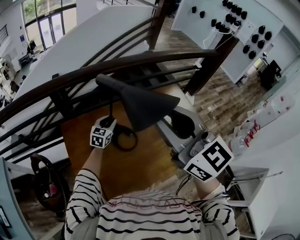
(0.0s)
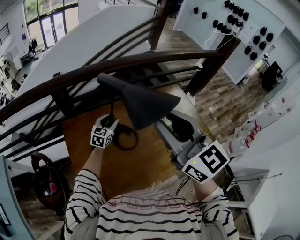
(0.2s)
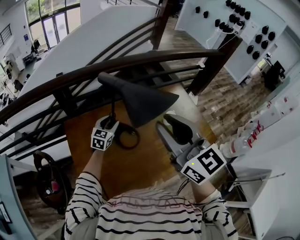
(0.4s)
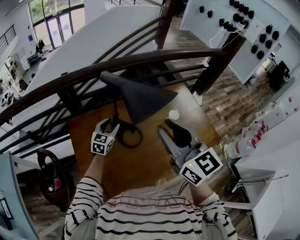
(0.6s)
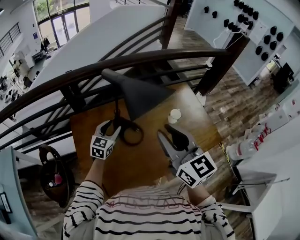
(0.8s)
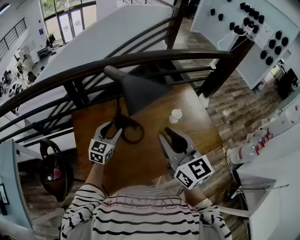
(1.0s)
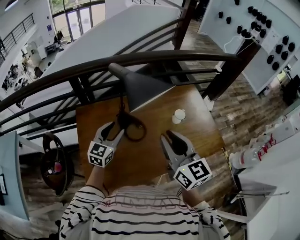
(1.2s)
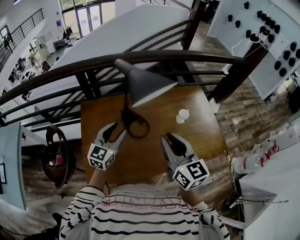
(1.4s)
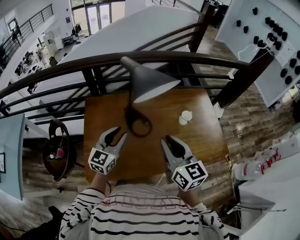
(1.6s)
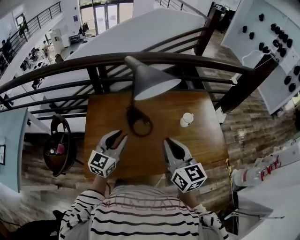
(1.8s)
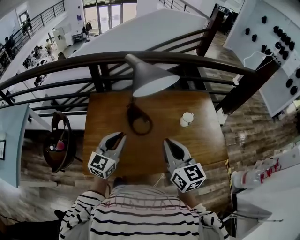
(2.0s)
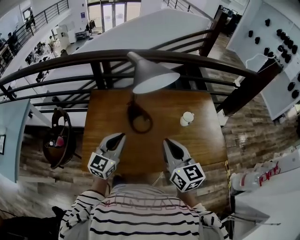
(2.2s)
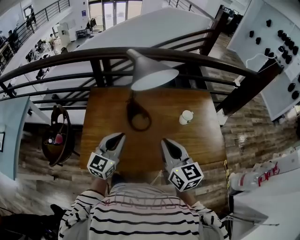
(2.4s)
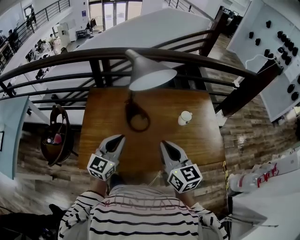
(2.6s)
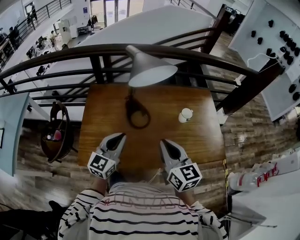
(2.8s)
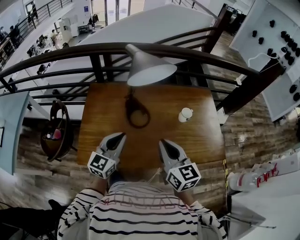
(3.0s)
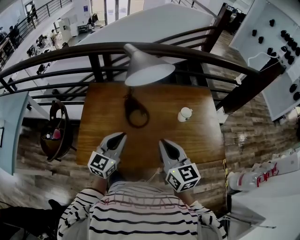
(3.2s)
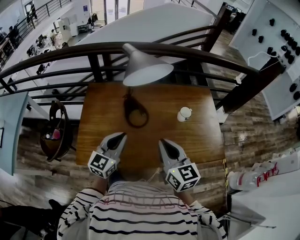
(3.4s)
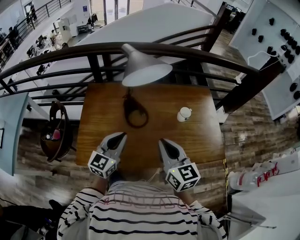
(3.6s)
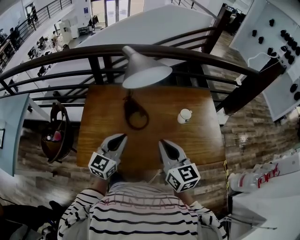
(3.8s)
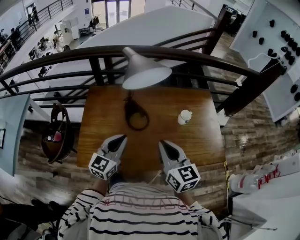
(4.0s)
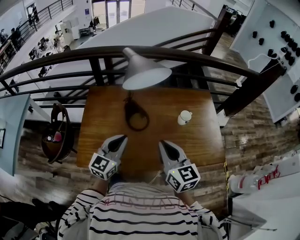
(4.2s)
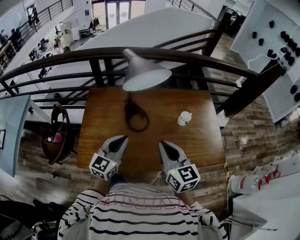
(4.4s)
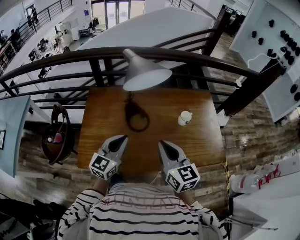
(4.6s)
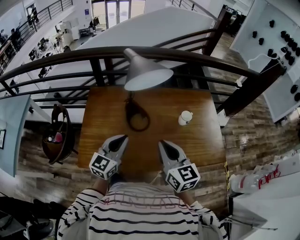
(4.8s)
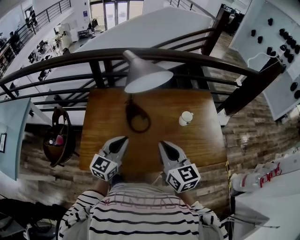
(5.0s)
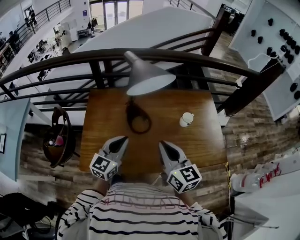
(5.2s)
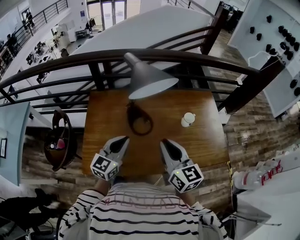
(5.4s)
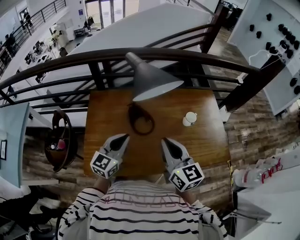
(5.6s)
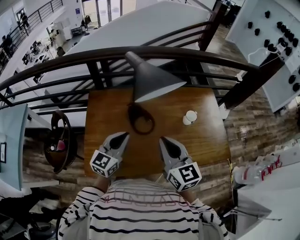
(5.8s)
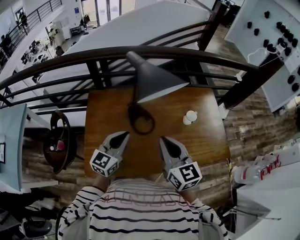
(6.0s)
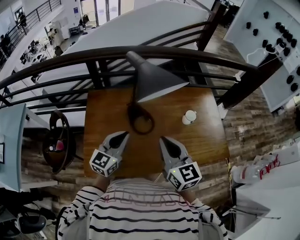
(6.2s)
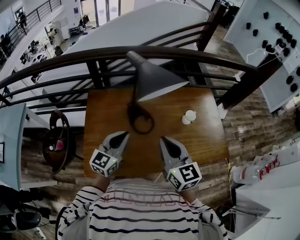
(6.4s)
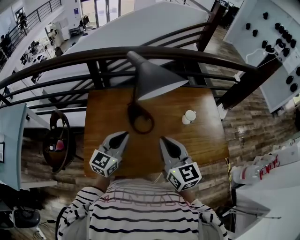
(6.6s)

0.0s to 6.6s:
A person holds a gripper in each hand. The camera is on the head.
0.0s to 1.6s: The left gripper moves backward and upward, approximately 25 cm, while the right gripper heads downward, backward and to the right, covering roughly 20 cm, and changes its angle by about 20 degrees.
1.6s to 3.2s: The left gripper shifts about 10 cm backward and to the right, and closes up. The right gripper travels downward by roughly 5 cm.
3.2s to 5.0s: The two grippers keep their place.
5.0s to 6.6s: Both grippers move to the left, some 5 cm.

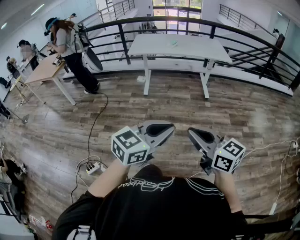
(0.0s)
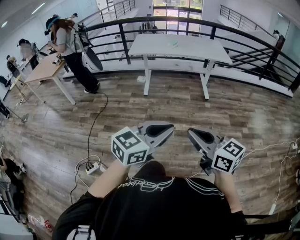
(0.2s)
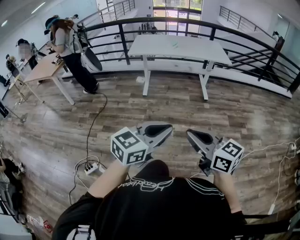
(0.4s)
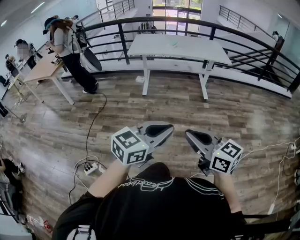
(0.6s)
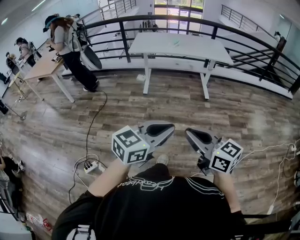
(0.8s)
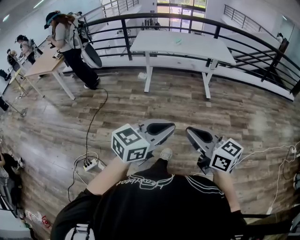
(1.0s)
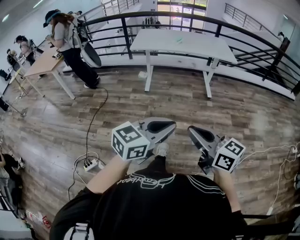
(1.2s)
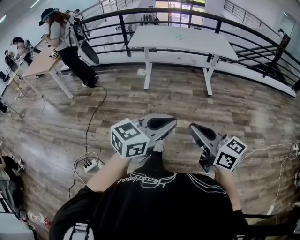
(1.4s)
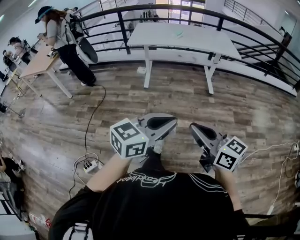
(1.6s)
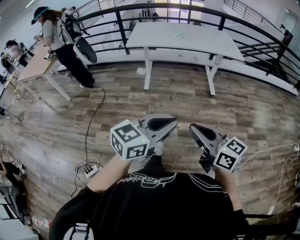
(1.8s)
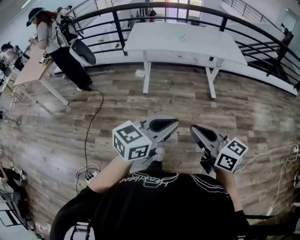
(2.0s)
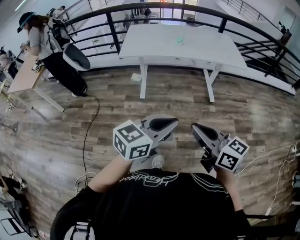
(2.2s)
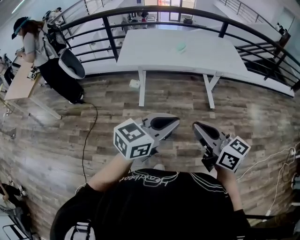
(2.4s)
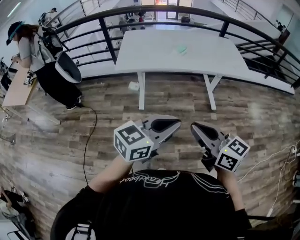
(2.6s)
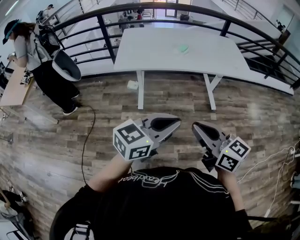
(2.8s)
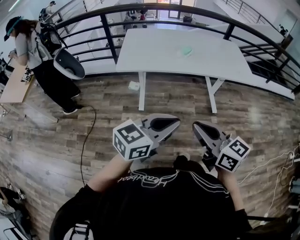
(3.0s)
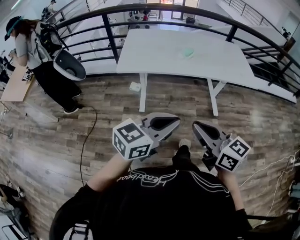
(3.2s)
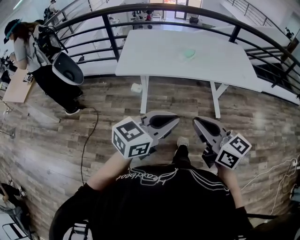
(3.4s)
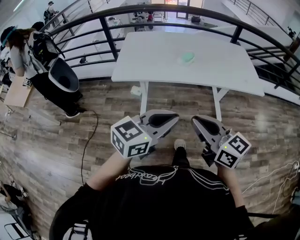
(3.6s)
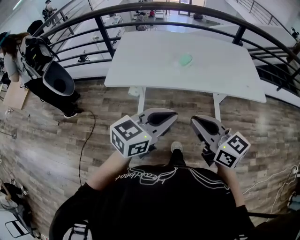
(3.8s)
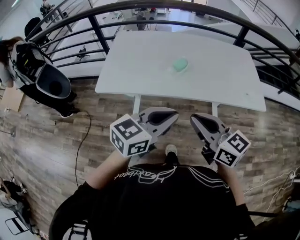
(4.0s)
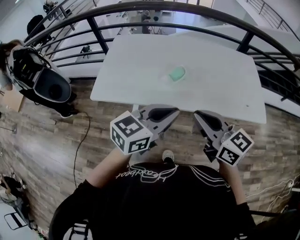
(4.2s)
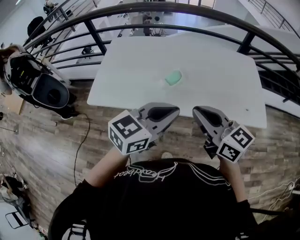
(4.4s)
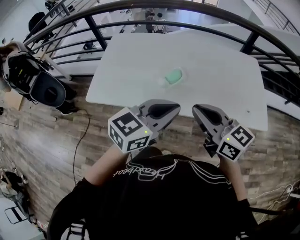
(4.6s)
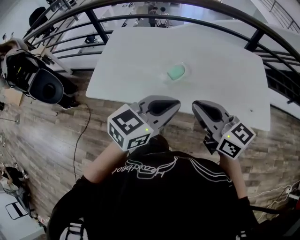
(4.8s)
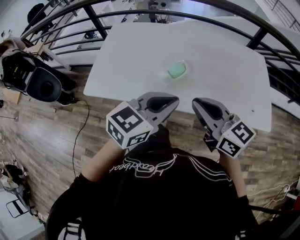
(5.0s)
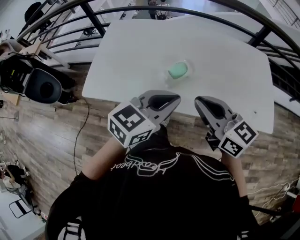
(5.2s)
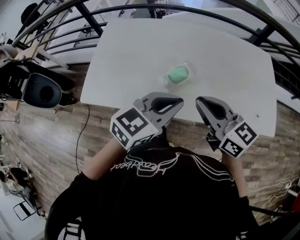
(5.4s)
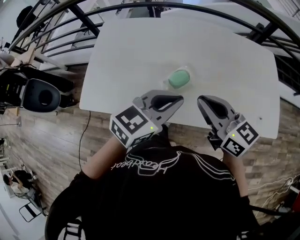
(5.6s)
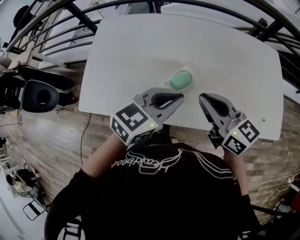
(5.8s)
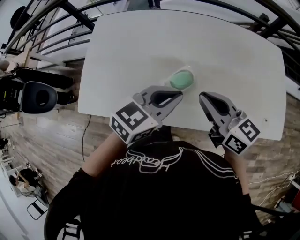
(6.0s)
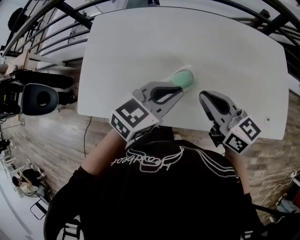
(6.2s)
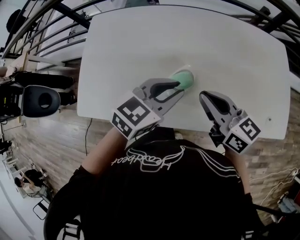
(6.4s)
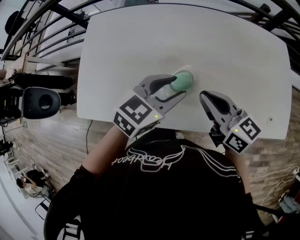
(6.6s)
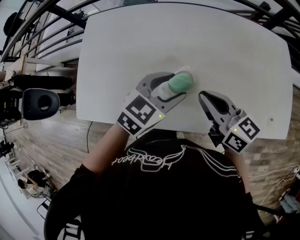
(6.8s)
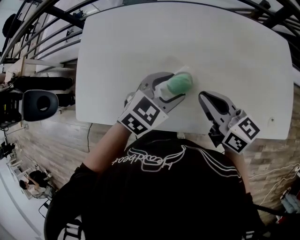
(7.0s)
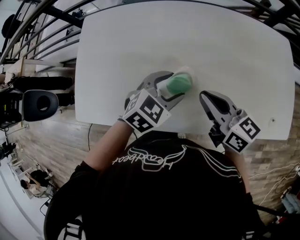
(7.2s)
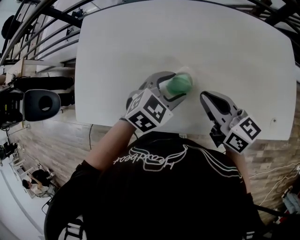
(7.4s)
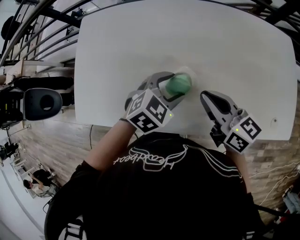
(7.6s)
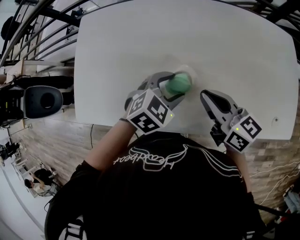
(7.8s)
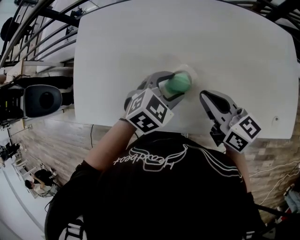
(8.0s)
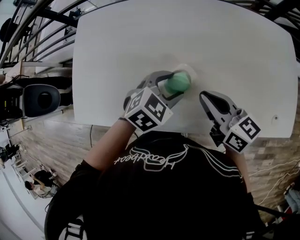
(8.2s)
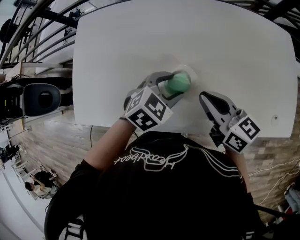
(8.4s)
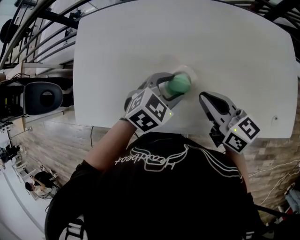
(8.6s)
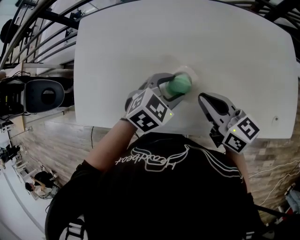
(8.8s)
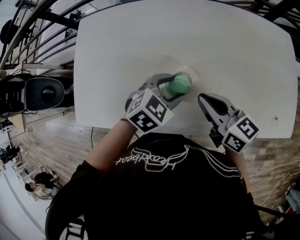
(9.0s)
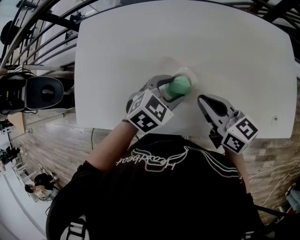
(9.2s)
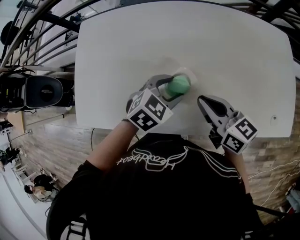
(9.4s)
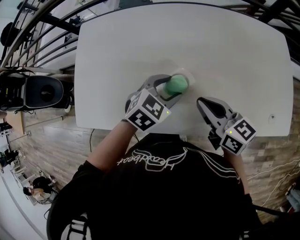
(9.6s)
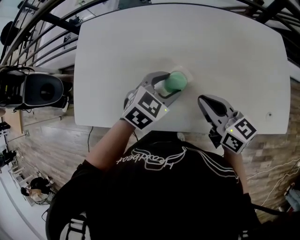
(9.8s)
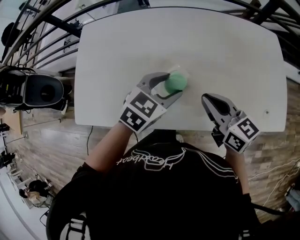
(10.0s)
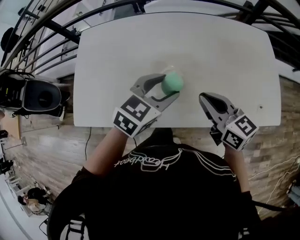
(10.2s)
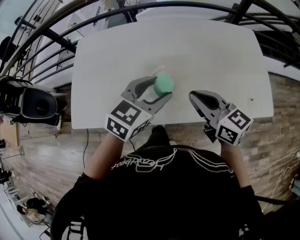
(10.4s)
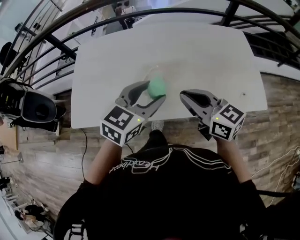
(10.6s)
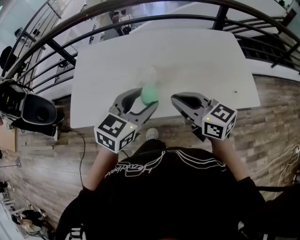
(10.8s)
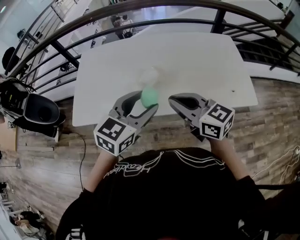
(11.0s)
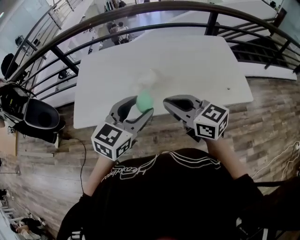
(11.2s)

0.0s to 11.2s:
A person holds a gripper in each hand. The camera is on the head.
0.0s to 1.6s: The left gripper travels forward by some 10 cm. Meanwhile the right gripper travels forward and downward by about 15 cm.
1.6s to 3.2s: The two grippers travel together, forward, approximately 50 cm.
3.2s to 4.8s: The two grippers travel together, forward, approximately 50 cm.
4.8s to 6.4s: The two grippers go some 25 cm forward and downward.
6.4s to 8.0s: The left gripper travels downward by about 10 cm, turns by roughly 30 degrees, and opens. The right gripper moves downward, some 5 cm.
8.0s to 9.6s: The grippers move only a little.
9.6s to 11.2s: Both grippers move backward and upward, about 35 cm. The left gripper changes its angle by roughly 30 degrees; the right gripper turns by some 20 degrees.

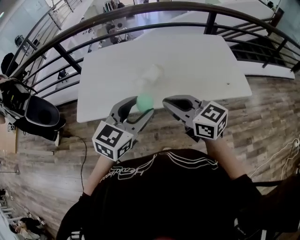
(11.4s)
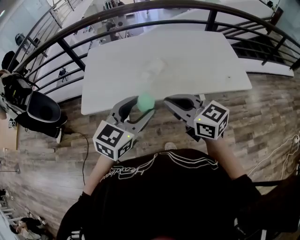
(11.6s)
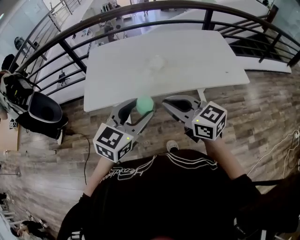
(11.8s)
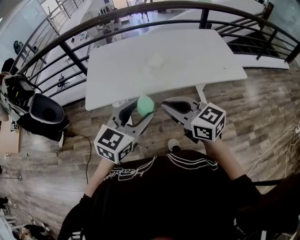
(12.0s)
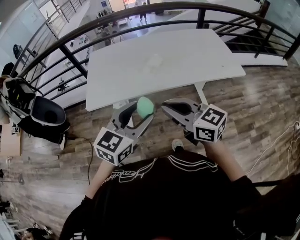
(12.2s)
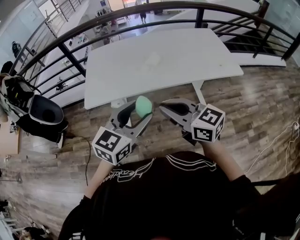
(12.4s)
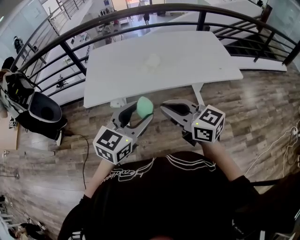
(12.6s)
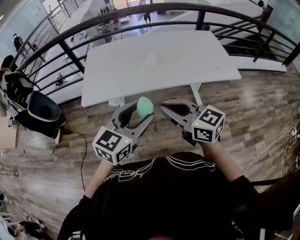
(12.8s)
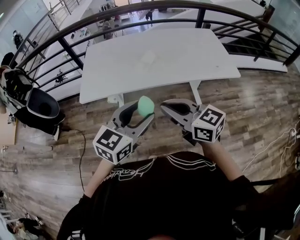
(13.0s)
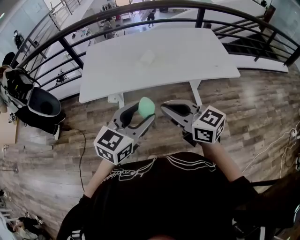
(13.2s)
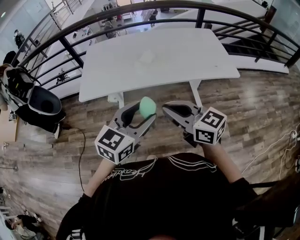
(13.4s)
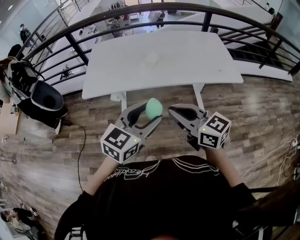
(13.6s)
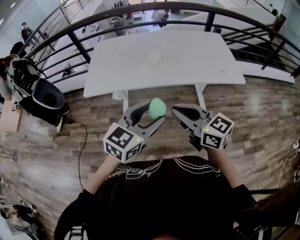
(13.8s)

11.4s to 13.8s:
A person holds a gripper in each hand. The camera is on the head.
11.4s to 12.6s: Both grippers travel together backward, about 15 cm.
12.6s to 13.8s: The two grippers go approximately 10 cm to the right.

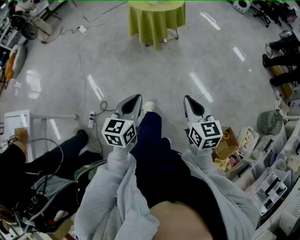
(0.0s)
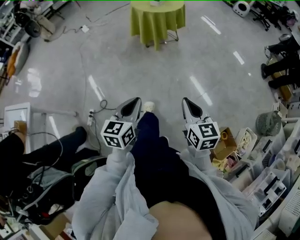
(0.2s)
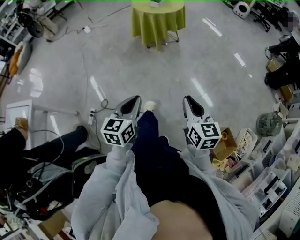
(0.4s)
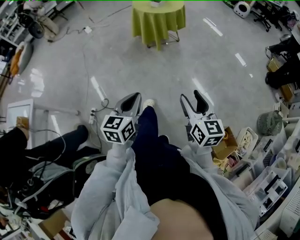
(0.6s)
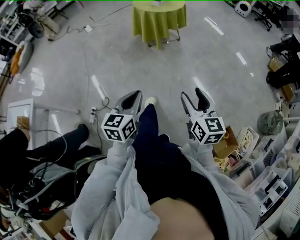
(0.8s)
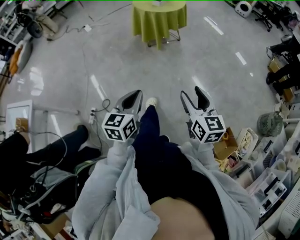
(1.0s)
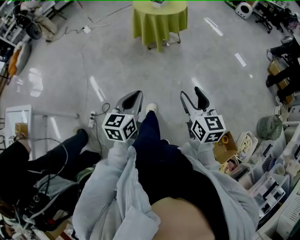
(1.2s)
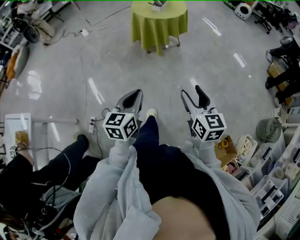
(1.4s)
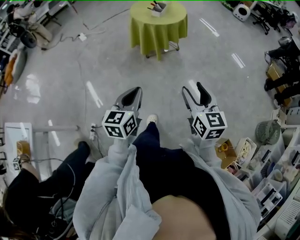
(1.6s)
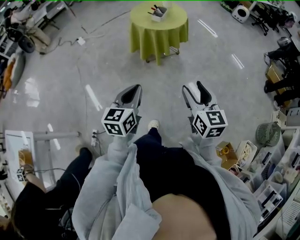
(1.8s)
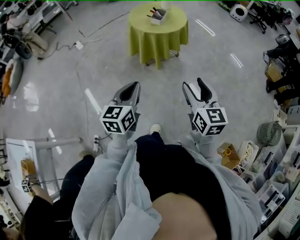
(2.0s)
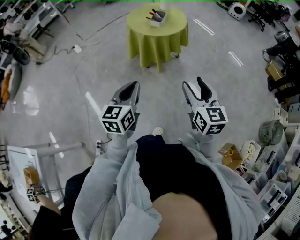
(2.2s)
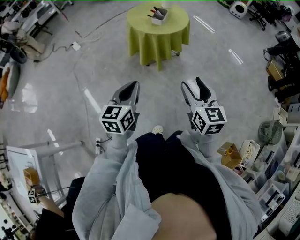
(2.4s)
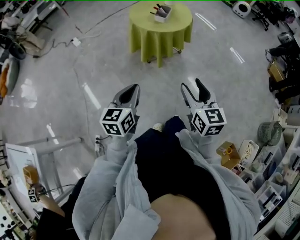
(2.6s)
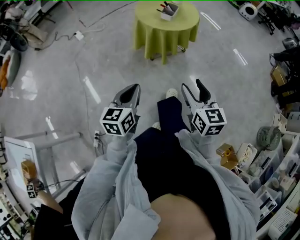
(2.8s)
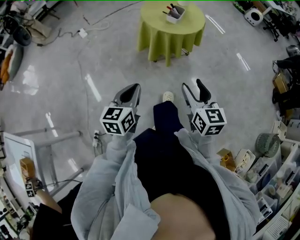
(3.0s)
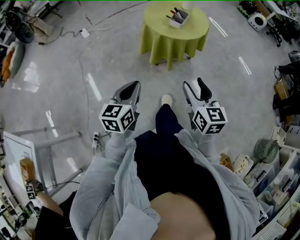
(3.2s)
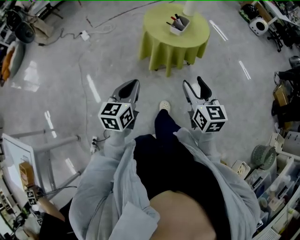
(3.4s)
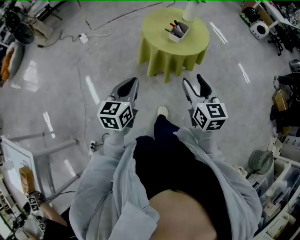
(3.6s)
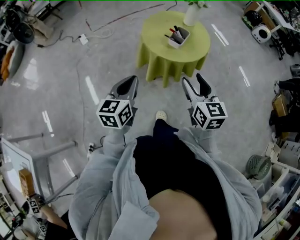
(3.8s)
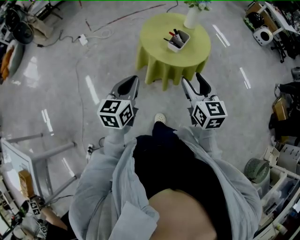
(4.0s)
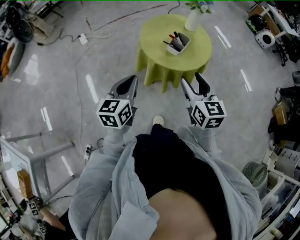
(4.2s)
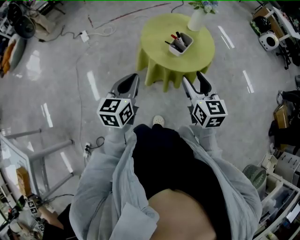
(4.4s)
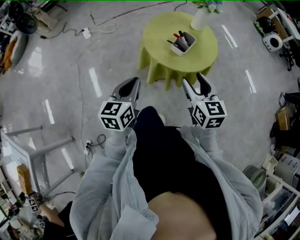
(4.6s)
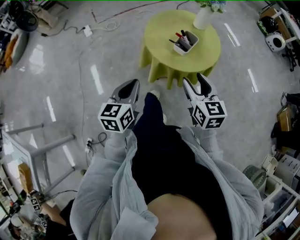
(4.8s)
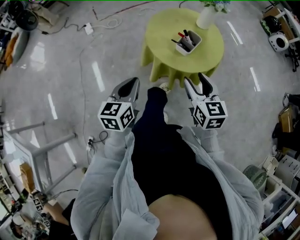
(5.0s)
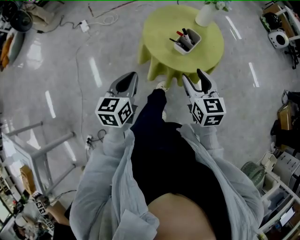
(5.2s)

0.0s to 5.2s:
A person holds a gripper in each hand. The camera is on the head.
0.0s to 1.8s: The grippers both shift forward by some 20 cm. The right gripper opens.
1.8s to 3.4s: The right gripper is displaced forward by about 25 cm. Meanwhile the left gripper goes about 25 cm forward and to the left.
3.4s to 5.2s: The grippers both shift forward by roughly 25 cm.
